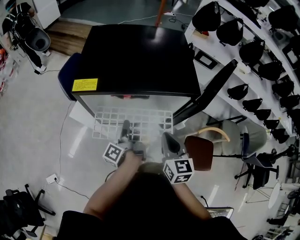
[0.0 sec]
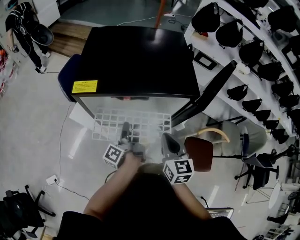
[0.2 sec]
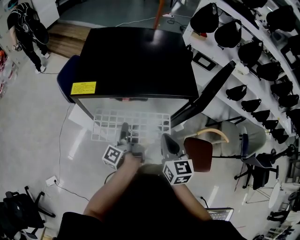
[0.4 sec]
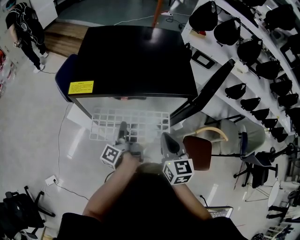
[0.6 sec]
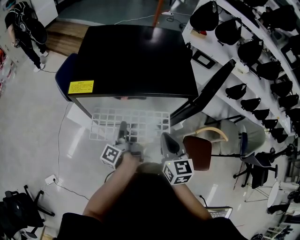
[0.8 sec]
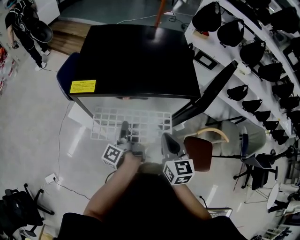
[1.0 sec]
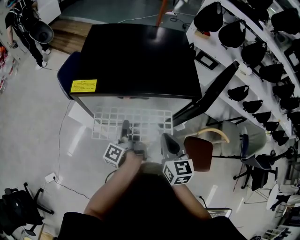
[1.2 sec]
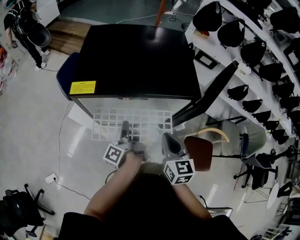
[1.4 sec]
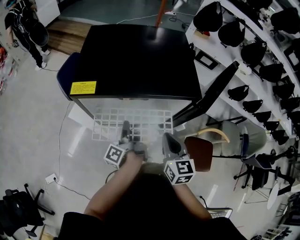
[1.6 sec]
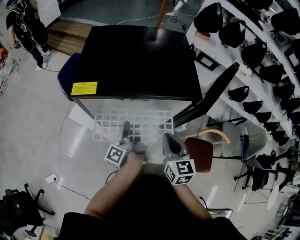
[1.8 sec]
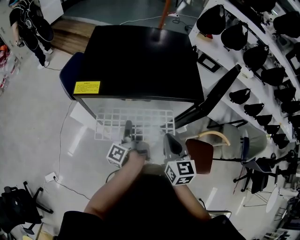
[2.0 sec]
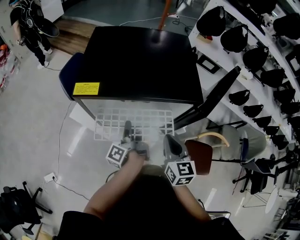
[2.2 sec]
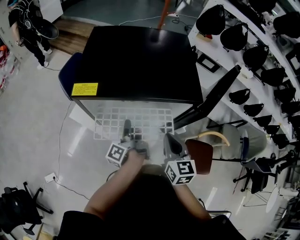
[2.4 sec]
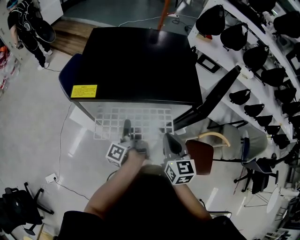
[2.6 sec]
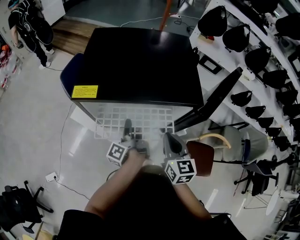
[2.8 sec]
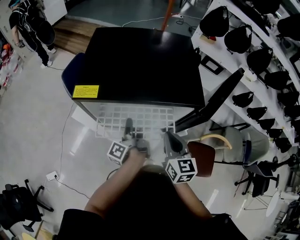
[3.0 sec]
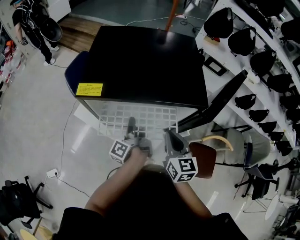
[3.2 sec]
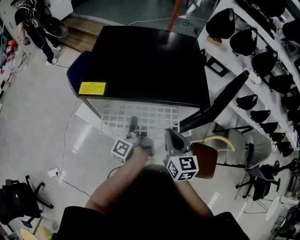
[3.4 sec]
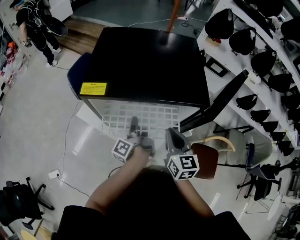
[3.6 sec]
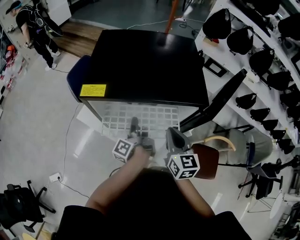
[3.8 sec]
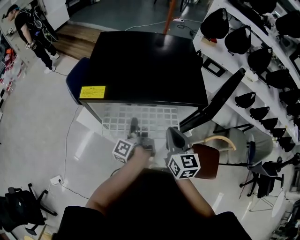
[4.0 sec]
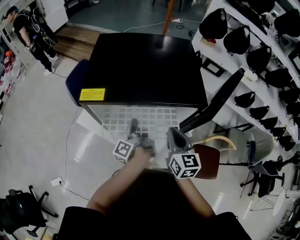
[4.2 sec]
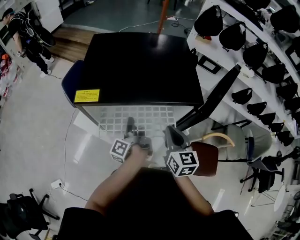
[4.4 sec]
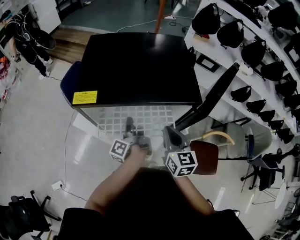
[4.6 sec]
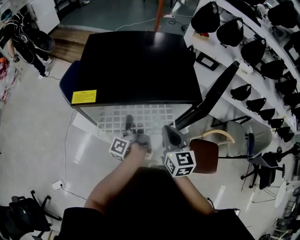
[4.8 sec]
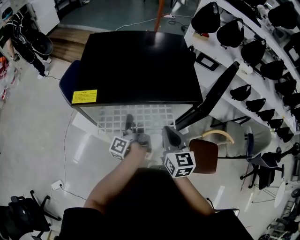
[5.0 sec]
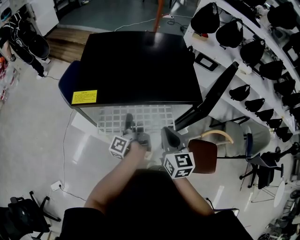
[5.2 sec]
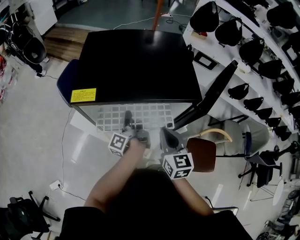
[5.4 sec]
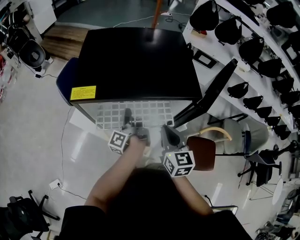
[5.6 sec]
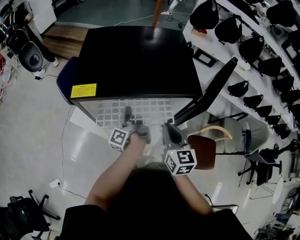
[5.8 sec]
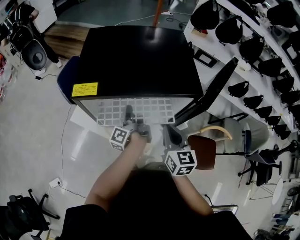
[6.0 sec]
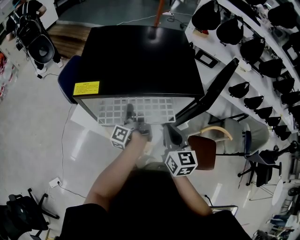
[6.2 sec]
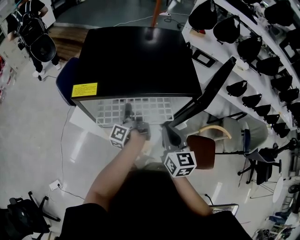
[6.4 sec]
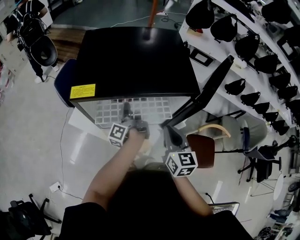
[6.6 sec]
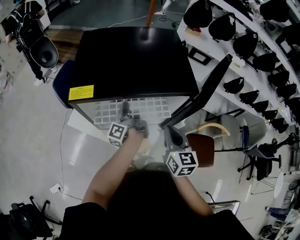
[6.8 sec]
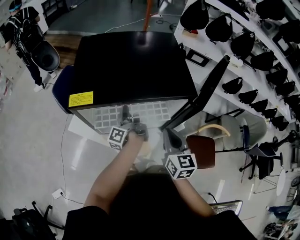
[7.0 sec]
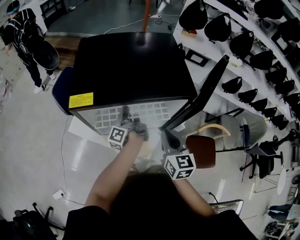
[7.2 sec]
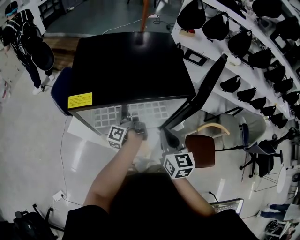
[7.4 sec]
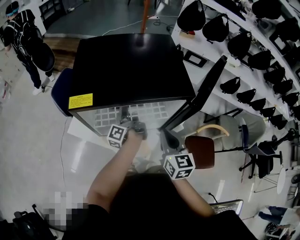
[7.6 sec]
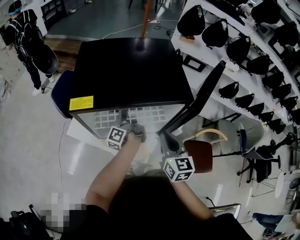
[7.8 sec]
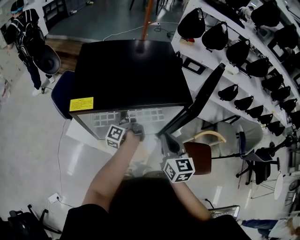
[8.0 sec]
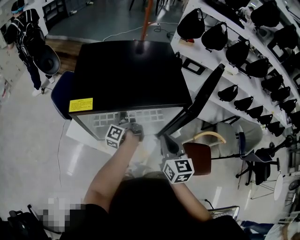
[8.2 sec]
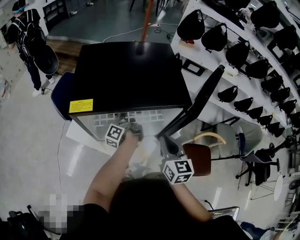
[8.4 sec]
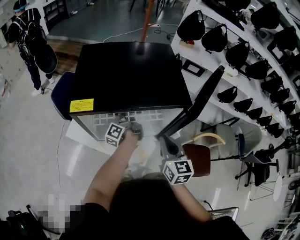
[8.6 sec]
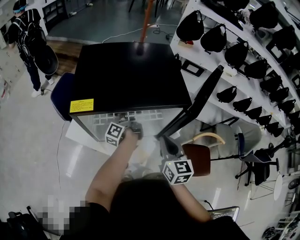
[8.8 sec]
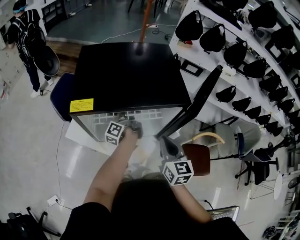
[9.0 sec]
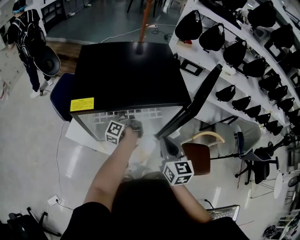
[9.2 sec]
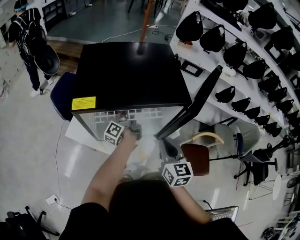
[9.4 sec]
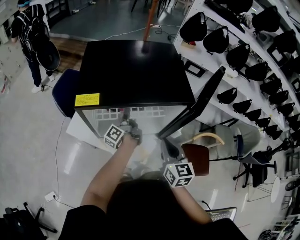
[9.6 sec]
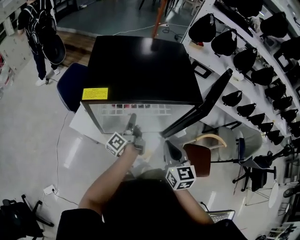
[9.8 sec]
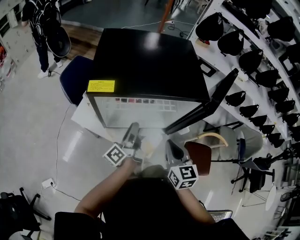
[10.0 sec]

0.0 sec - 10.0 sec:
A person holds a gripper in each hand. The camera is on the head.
8.6 sec - 10.0 sec: The right gripper ends up roughly 5 cm from where it was.

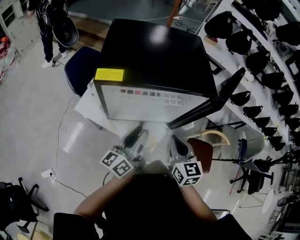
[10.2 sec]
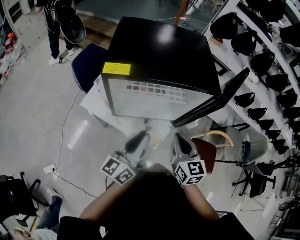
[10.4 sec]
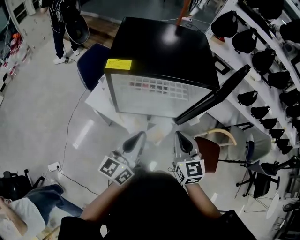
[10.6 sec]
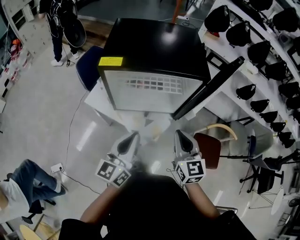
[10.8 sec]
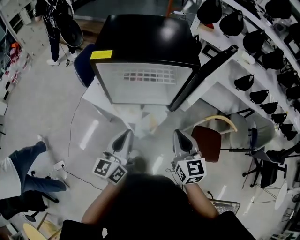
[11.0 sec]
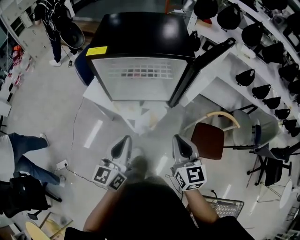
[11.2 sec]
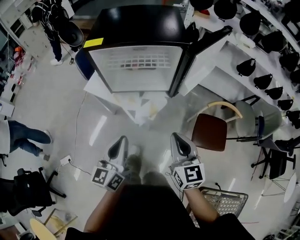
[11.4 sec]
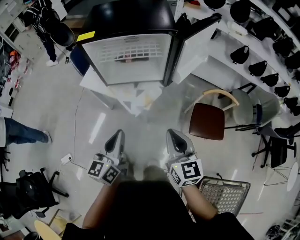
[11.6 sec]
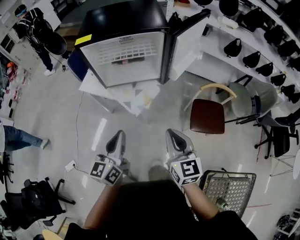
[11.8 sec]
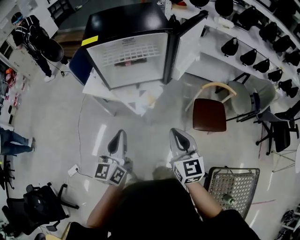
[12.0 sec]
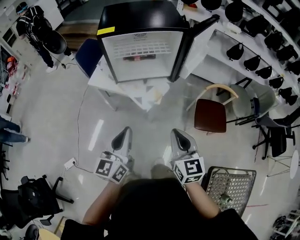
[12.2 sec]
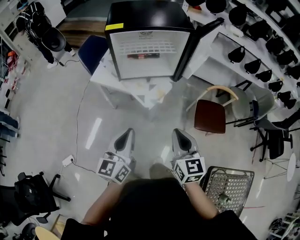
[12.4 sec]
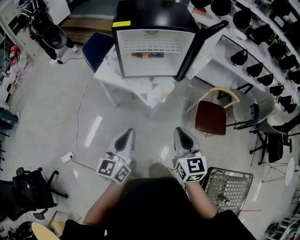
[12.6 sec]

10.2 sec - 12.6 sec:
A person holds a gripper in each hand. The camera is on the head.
10.2 sec - 11.4 sec: The right gripper shifts by roughly 25 cm.
11.4 sec - 12.6 sec: The right gripper ends up approximately 20 cm from where it was.

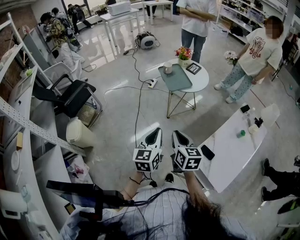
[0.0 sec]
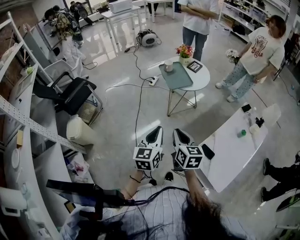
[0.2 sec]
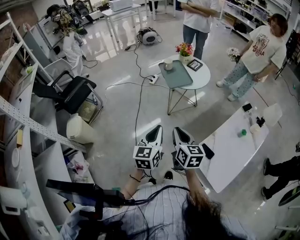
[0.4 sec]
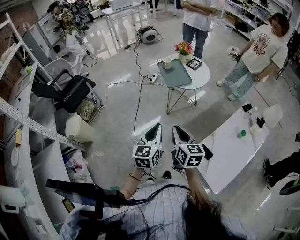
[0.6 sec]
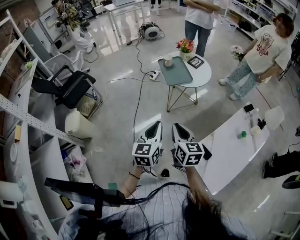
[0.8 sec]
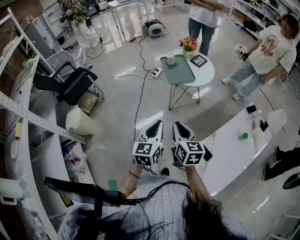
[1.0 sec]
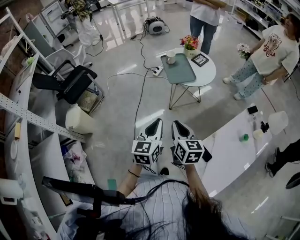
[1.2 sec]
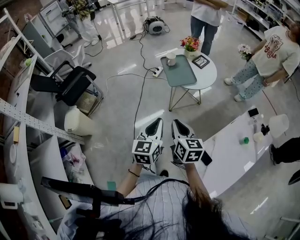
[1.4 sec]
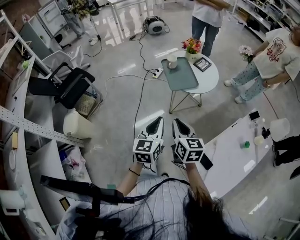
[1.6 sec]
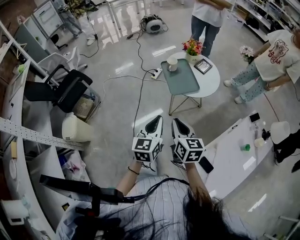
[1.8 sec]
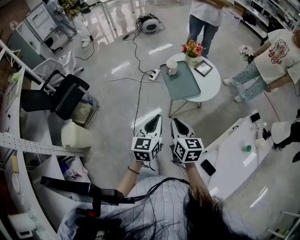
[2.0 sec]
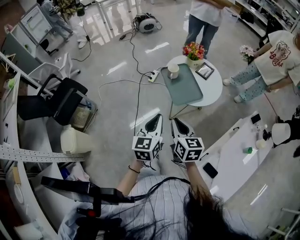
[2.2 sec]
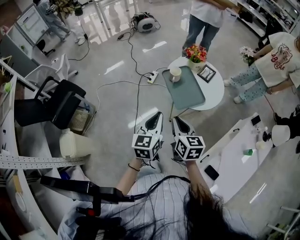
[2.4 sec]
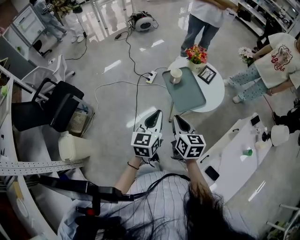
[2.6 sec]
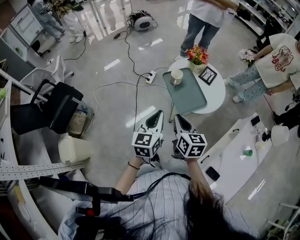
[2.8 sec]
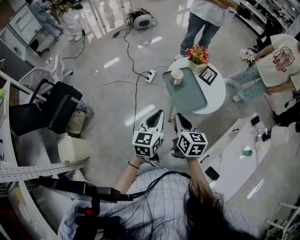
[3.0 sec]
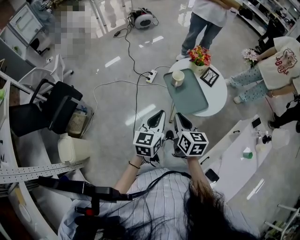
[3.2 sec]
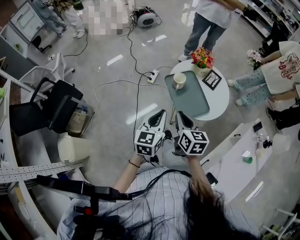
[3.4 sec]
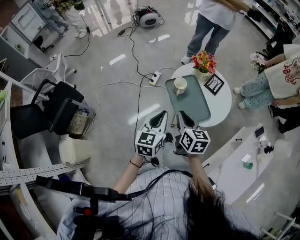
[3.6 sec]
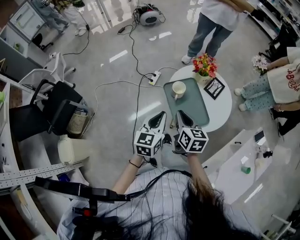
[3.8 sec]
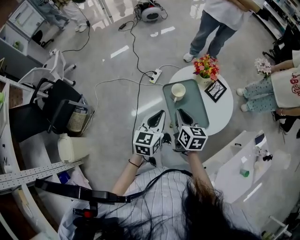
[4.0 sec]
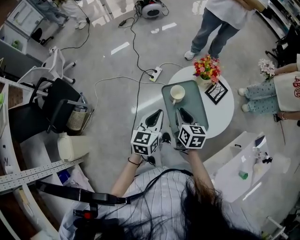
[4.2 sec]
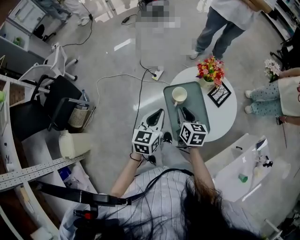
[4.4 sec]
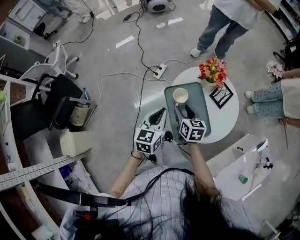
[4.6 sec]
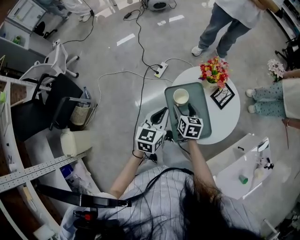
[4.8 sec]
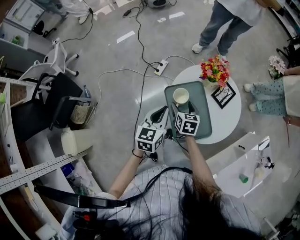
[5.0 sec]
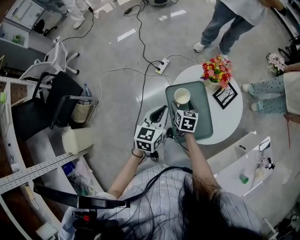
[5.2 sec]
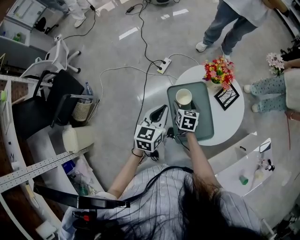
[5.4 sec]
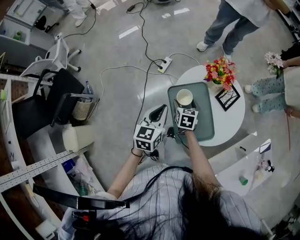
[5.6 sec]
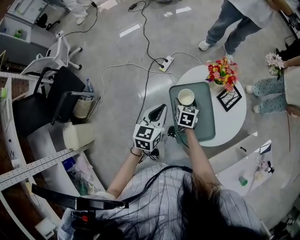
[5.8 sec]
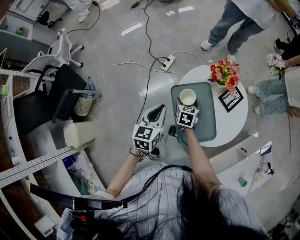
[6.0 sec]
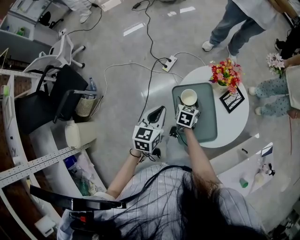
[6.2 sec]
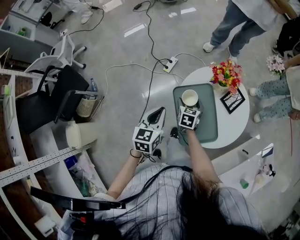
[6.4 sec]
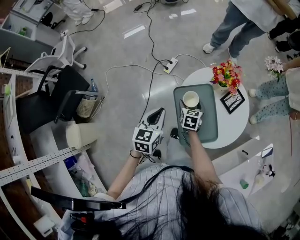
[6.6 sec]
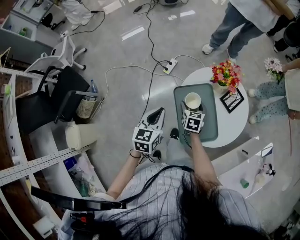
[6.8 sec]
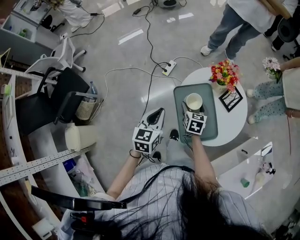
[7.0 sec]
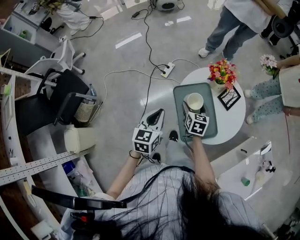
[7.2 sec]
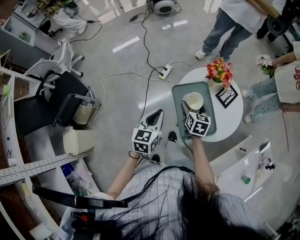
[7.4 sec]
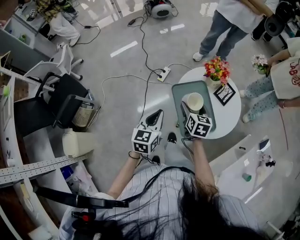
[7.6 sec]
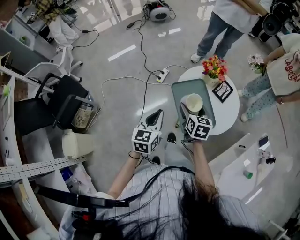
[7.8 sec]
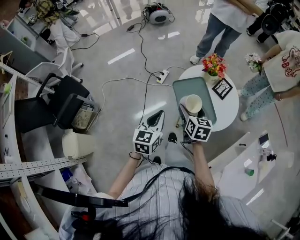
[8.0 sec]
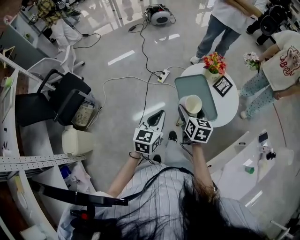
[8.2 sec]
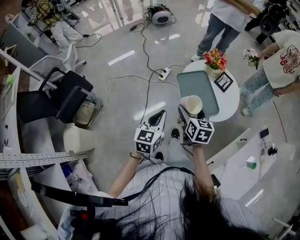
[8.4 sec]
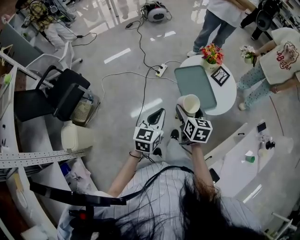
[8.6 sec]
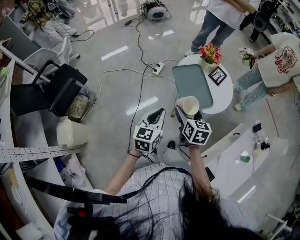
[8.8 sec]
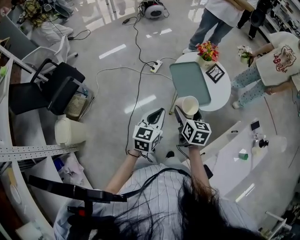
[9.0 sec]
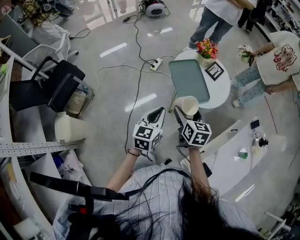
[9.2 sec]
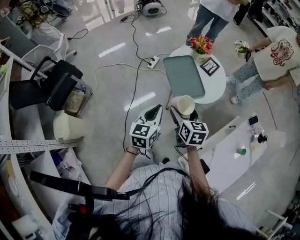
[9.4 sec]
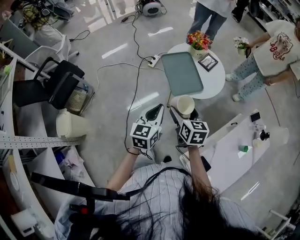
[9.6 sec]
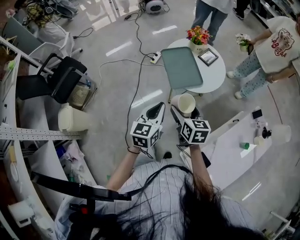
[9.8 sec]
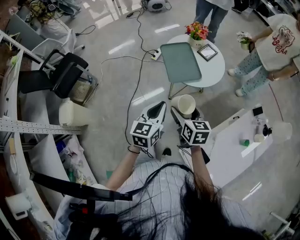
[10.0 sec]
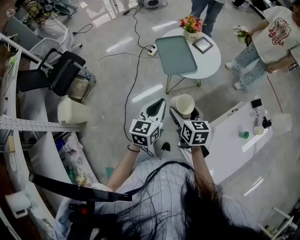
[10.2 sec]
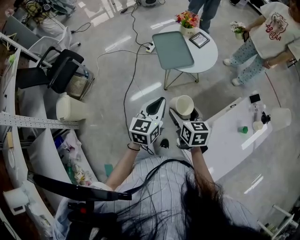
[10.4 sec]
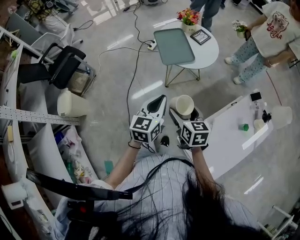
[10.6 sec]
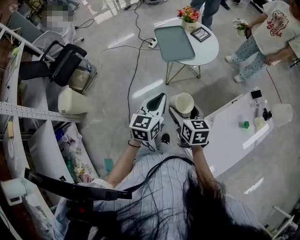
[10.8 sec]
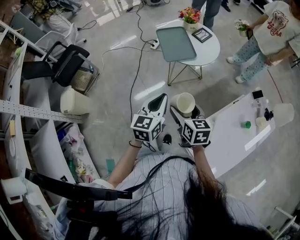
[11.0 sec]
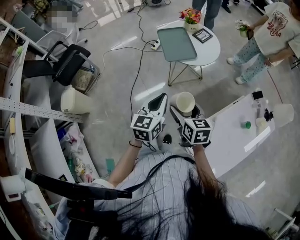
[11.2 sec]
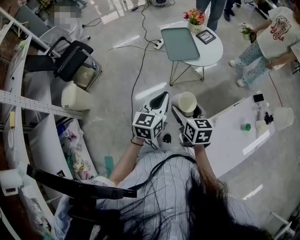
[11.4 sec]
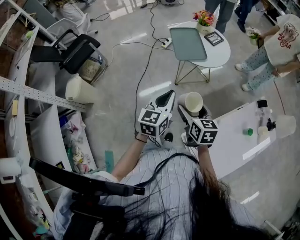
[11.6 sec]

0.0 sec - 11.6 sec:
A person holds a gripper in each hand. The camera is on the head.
0.0 sec - 1.4 sec: The right gripper heads forward, covering some 10 cm, while the left gripper is displaced forward and to the right by some 10 cm.
1.4 sec - 2.8 sec: The two grippers go some 30 cm forward.
2.8 sec - 4.4 sec: The right gripper shifts approximately 25 cm forward and downward; the left gripper heads forward, covering approximately 20 cm.
4.4 sec - 5.8 sec: The right gripper is displaced downward and forward by approximately 15 cm, and opens its fingers, while the left gripper shifts by roughly 5 cm.
5.8 sec - 7.2 sec: The left gripper ends up about 5 cm from where it was, while the right gripper shifts about 5 cm upward.
7.2 sec - 8.8 sec: The left gripper heads backward, covering roughly 20 cm. Meanwhile the right gripper goes roughly 30 cm backward and upward.
8.8 sec - 10.2 sec: Both grippers travel together backward and to the right, approximately 25 cm.
10.2 sec - 11.6 sec: The two grippers go some 10 cm backward.
